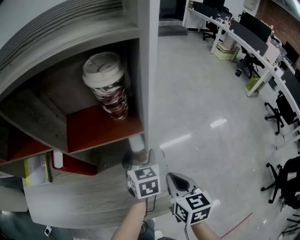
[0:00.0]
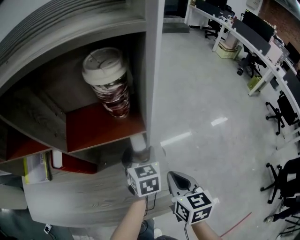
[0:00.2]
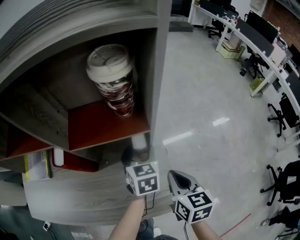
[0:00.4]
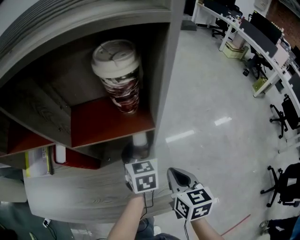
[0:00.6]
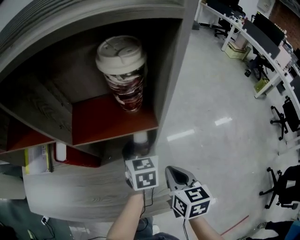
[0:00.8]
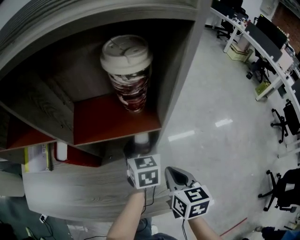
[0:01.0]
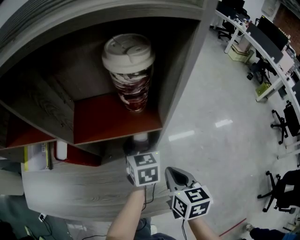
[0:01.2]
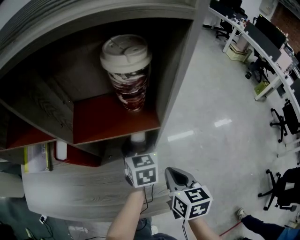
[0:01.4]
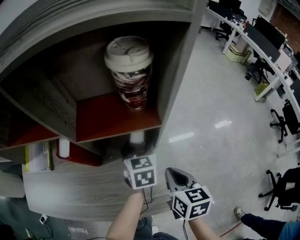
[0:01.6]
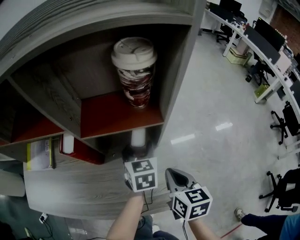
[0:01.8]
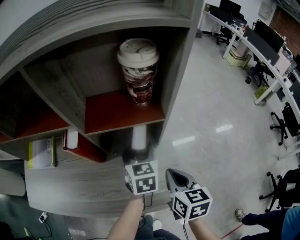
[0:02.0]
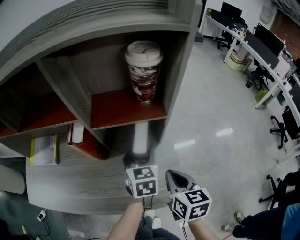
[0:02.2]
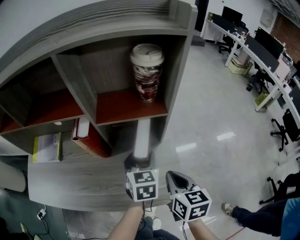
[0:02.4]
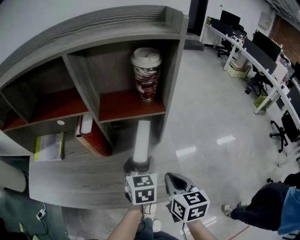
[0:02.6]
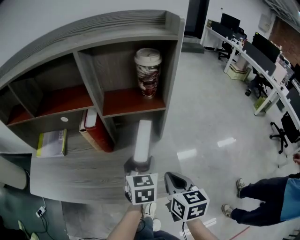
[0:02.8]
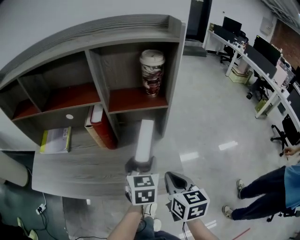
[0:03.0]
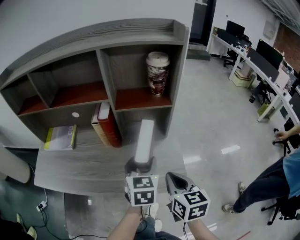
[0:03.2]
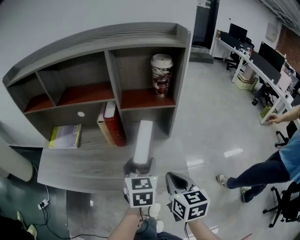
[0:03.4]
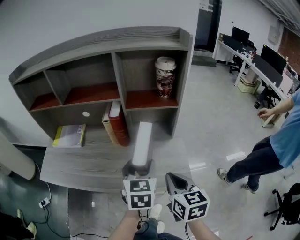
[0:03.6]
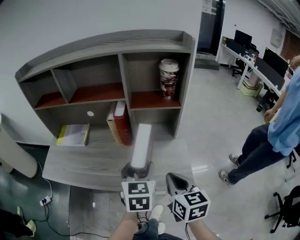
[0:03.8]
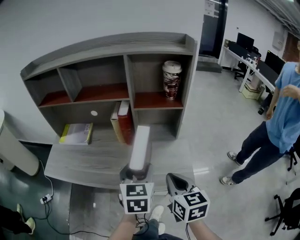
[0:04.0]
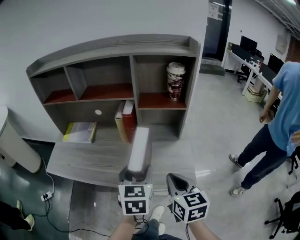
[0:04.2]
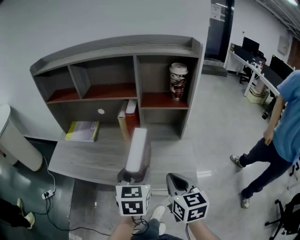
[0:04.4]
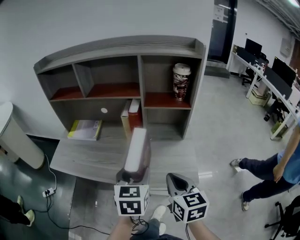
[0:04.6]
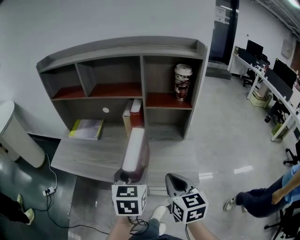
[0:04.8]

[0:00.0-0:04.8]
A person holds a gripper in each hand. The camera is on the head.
0:00.0 to 0:01.6: The left gripper shifts by about 5 cm.
0:01.6 to 0:03.2: The right gripper shifts approximately 15 cm backward, to the left and upward. Meanwhile the left gripper moves backward and upward, about 20 cm.
0:03.2 to 0:04.8: The right gripper is displaced to the left and backward by some 10 cm, while the left gripper moves to the left, backward and upward, some 15 cm.

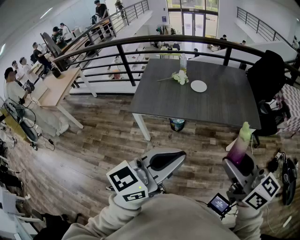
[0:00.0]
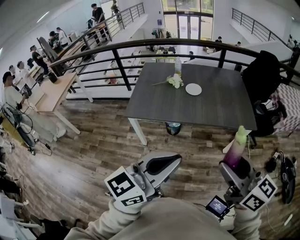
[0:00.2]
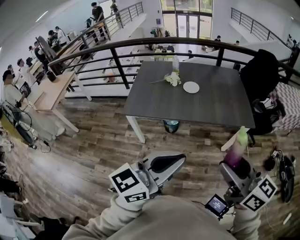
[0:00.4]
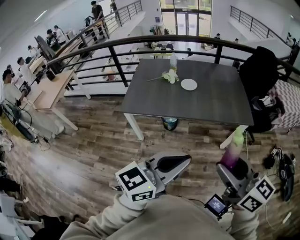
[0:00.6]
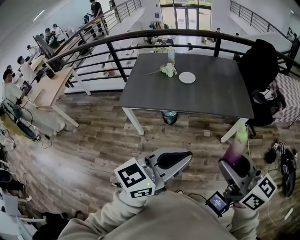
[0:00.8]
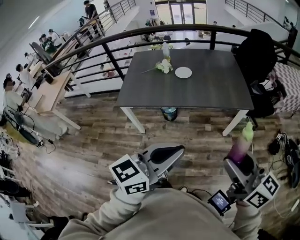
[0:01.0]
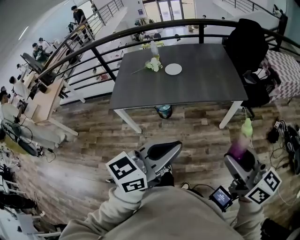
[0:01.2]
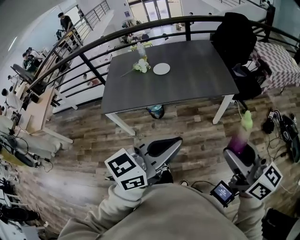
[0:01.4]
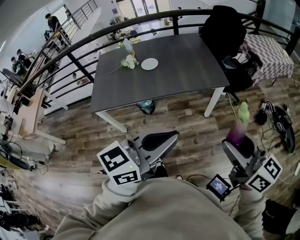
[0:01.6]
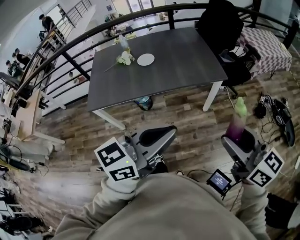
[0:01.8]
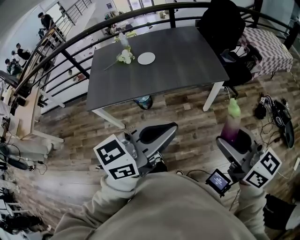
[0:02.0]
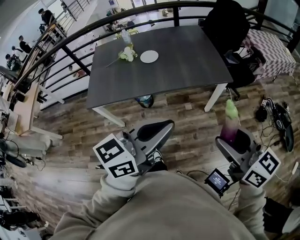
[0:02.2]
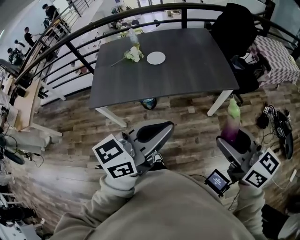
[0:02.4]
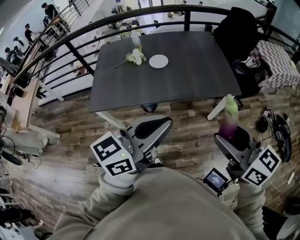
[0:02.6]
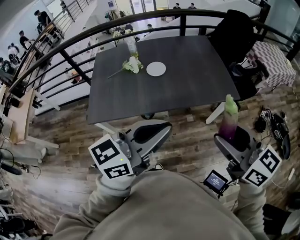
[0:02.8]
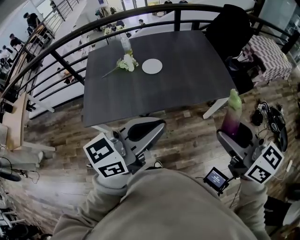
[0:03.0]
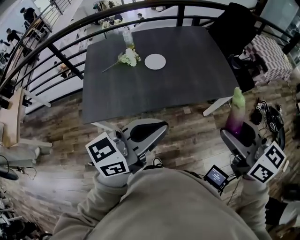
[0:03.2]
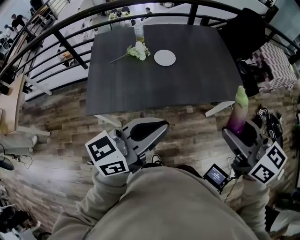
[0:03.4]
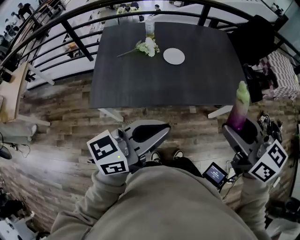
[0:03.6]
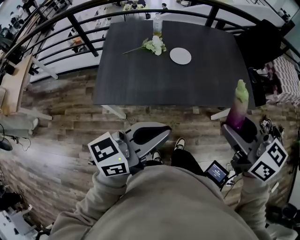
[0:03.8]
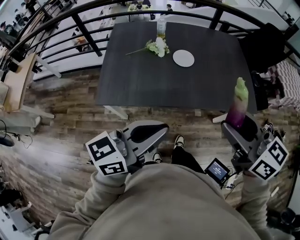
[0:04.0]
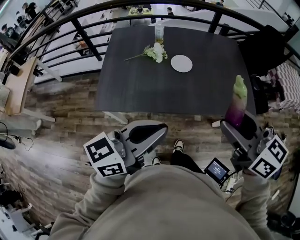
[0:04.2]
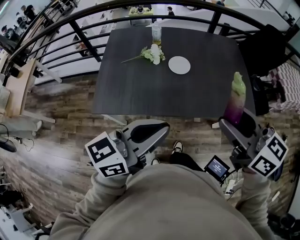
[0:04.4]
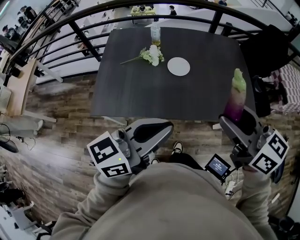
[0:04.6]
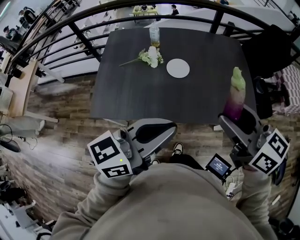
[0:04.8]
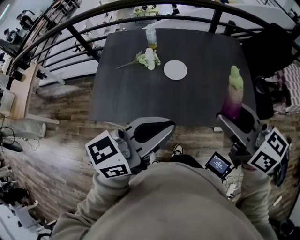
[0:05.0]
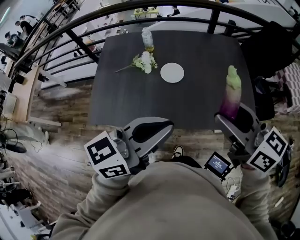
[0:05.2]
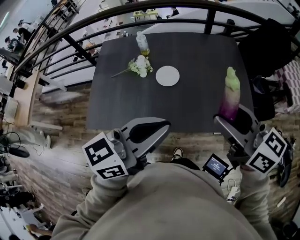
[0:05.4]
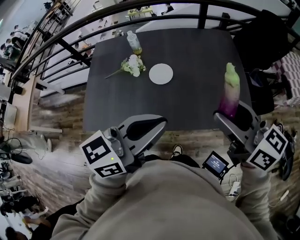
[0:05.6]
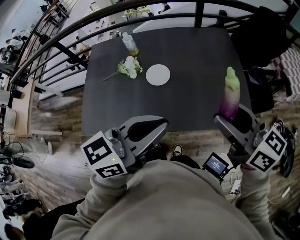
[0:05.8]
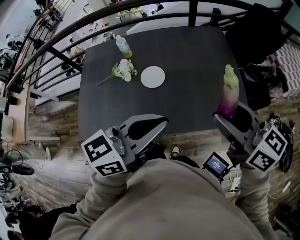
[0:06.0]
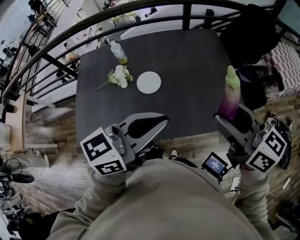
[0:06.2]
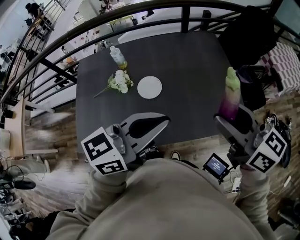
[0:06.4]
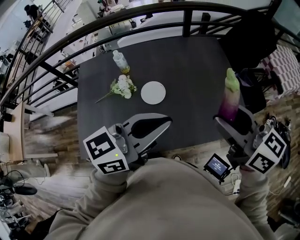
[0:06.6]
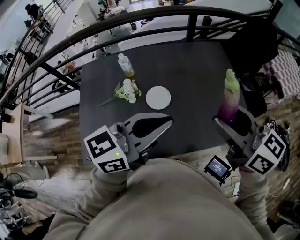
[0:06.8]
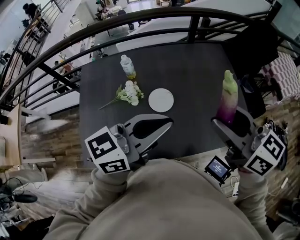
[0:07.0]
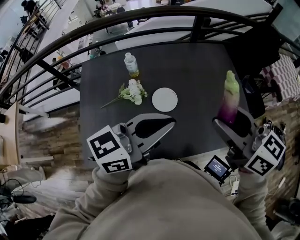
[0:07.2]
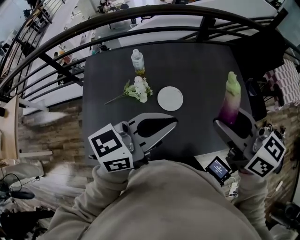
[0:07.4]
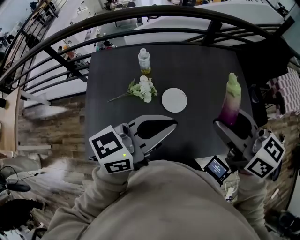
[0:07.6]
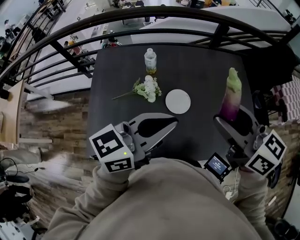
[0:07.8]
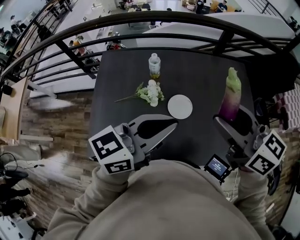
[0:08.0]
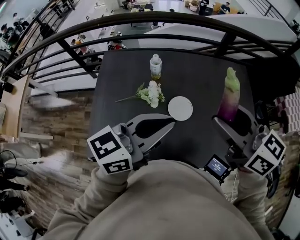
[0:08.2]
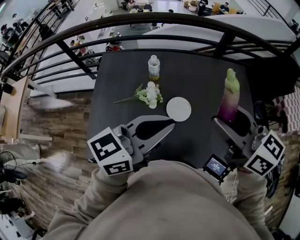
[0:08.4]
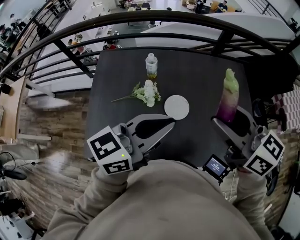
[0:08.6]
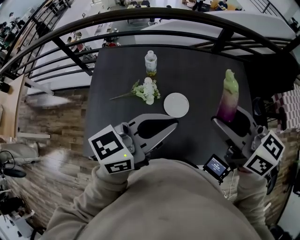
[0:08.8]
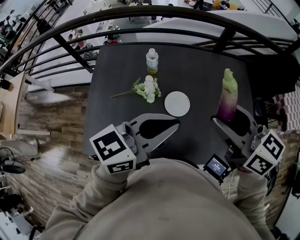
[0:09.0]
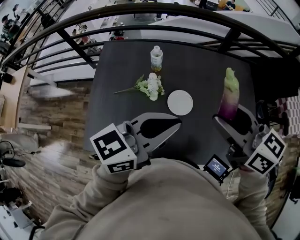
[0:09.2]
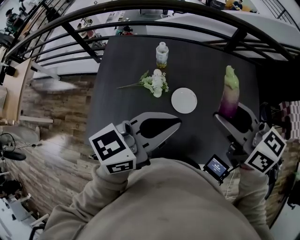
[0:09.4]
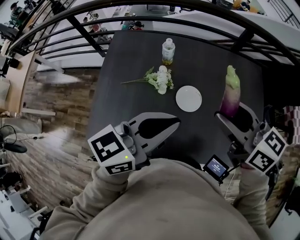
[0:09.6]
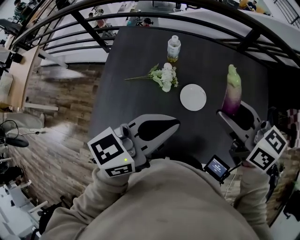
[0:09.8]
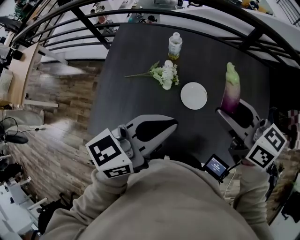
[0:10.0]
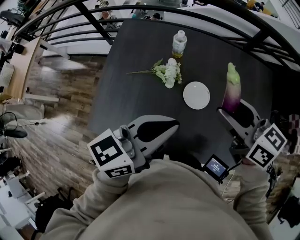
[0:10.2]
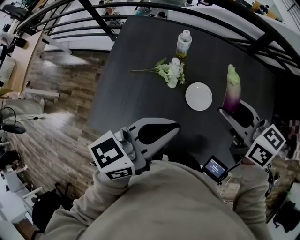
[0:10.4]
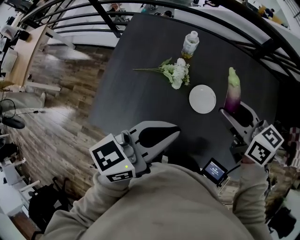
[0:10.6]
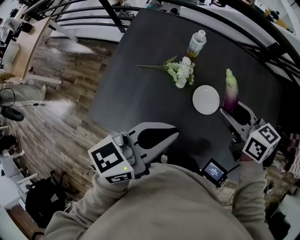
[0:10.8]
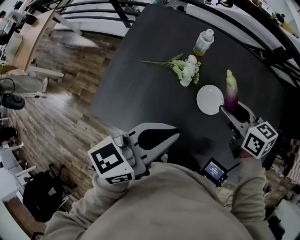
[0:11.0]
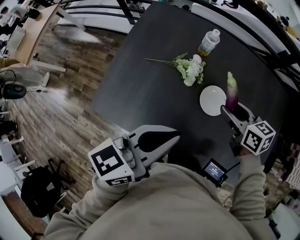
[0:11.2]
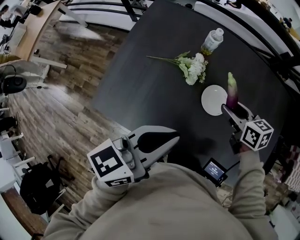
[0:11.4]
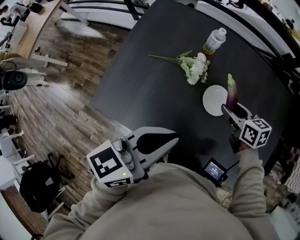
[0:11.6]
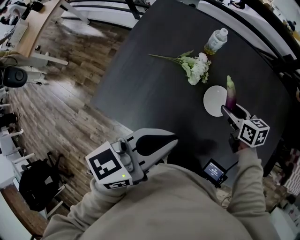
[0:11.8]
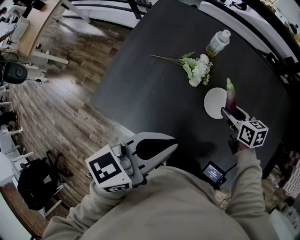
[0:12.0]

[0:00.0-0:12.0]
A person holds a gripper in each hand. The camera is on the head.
0:00.0 to 0:01.6: Both grippers travel together to the right, some 15 cm.
0:01.6 to 0:03.0: The left gripper is displaced to the left and forward by approximately 25 cm, while the right gripper heads forward and to the left, covering approximately 25 cm.
0:03.0 to 0:04.4: The right gripper is displaced forward and to the left by approximately 15 cm. The left gripper moves to the left and forward, approximately 10 cm.
0:04.4 to 0:06.0: The left gripper is displaced forward and to the right by approximately 20 cm; the right gripper goes roughly 20 cm to the right and forward.
0:06.0 to 0:07.6: The grippers both shift to the left and forward by about 20 cm.
0:07.6 to 0:09.0: The grippers move only a little.
0:09.0 to 0:10.4: The right gripper shifts roughly 10 cm downward and forward; the left gripper heads downward, covering approximately 5 cm.
0:10.4 to 0:12.0: The left gripper changes place by some 5 cm, while the right gripper shifts approximately 25 cm downward, and swivels roughly 20 degrees.

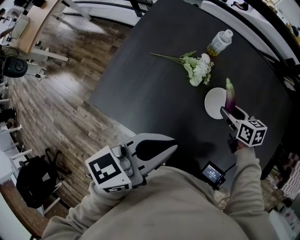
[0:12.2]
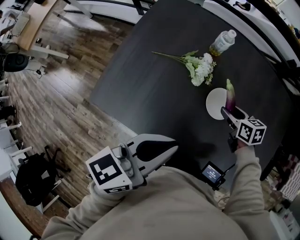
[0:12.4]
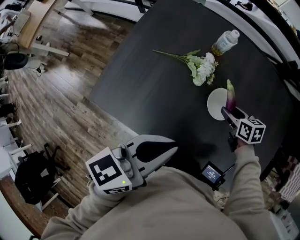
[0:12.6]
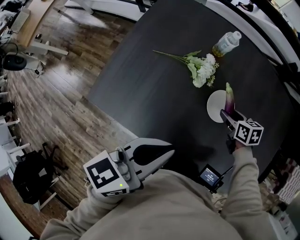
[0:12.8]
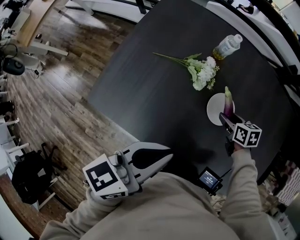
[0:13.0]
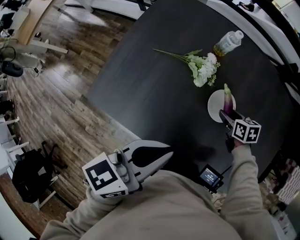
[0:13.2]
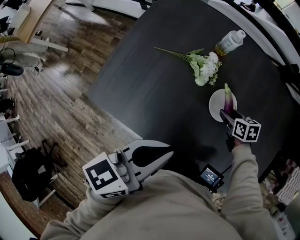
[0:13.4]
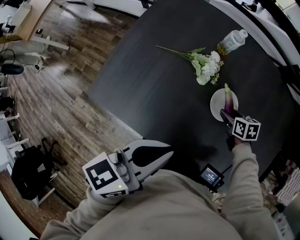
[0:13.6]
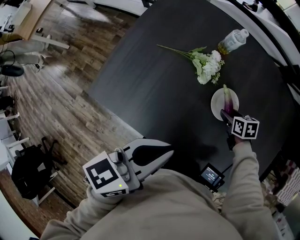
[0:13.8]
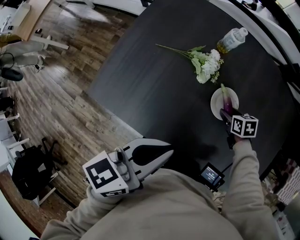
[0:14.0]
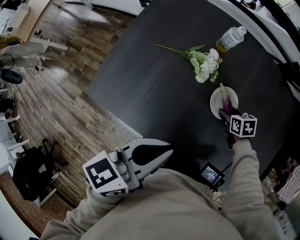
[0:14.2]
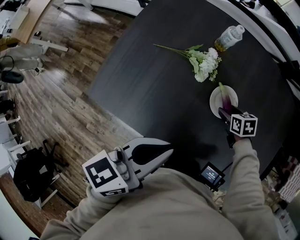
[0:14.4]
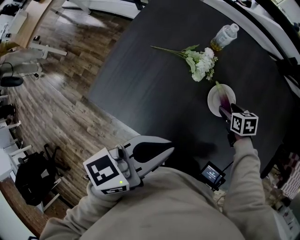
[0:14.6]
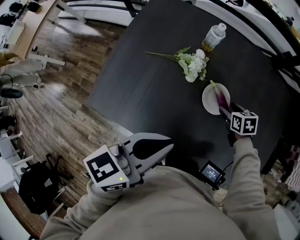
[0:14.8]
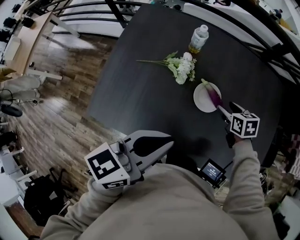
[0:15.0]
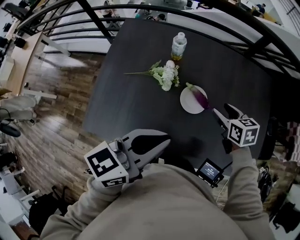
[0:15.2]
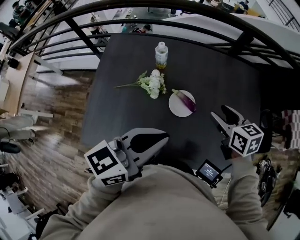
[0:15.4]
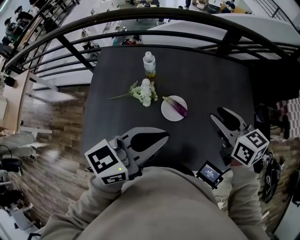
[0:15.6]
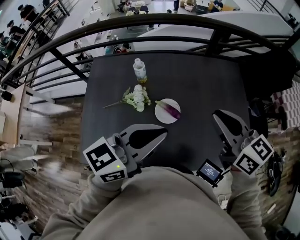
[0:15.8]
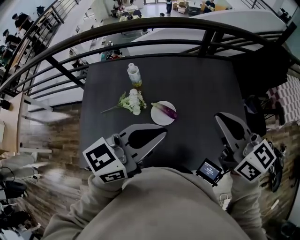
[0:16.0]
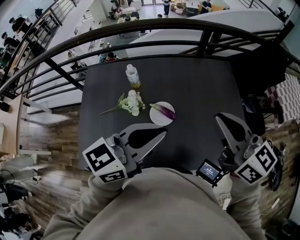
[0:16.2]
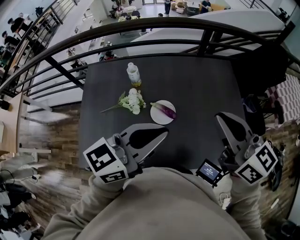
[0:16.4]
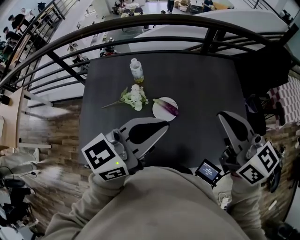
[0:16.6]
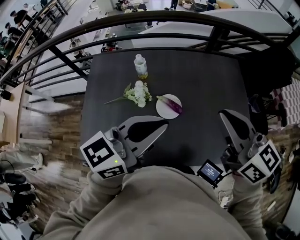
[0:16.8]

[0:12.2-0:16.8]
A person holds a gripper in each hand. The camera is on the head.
0:12.2 to 0:13.8: The right gripper shifts approximately 10 cm downward.
0:13.8 to 0:15.2: The left gripper is displaced upward and to the right by approximately 10 cm, and changes its angle by approximately 20 degrees. The right gripper goes roughly 20 cm upward, and rotates roughly 20 degrees.
0:15.2 to 0:16.8: The left gripper moves upward and to the right, about 10 cm, while the right gripper moves upward, some 30 cm, tips its fingers upward by about 40 degrees, and closes.

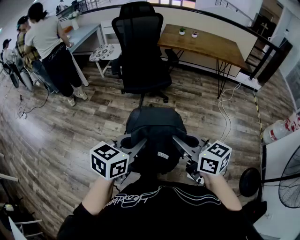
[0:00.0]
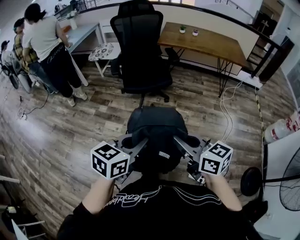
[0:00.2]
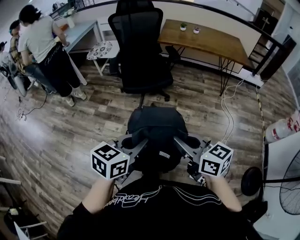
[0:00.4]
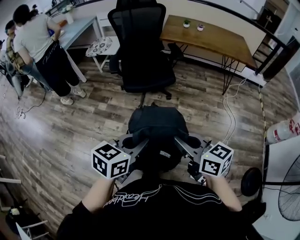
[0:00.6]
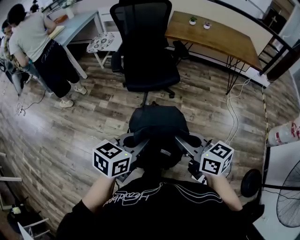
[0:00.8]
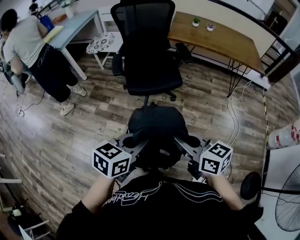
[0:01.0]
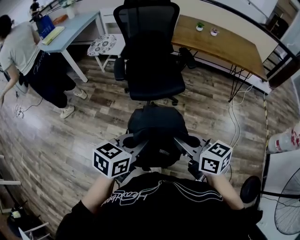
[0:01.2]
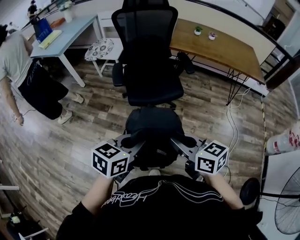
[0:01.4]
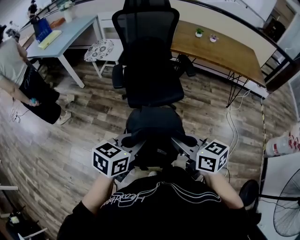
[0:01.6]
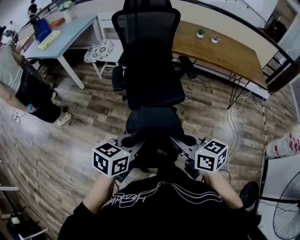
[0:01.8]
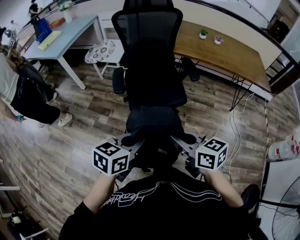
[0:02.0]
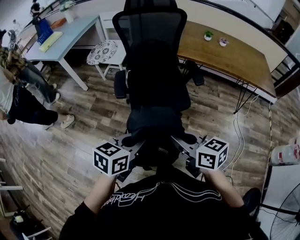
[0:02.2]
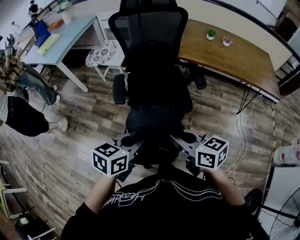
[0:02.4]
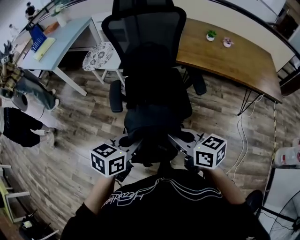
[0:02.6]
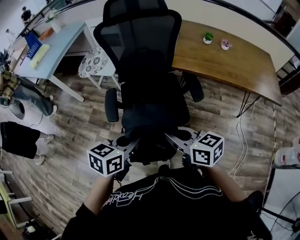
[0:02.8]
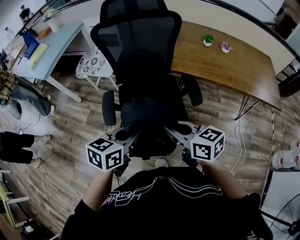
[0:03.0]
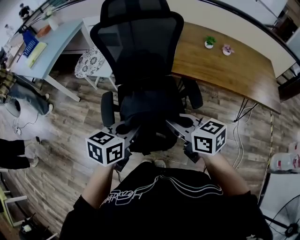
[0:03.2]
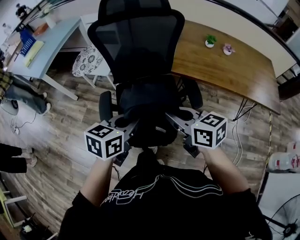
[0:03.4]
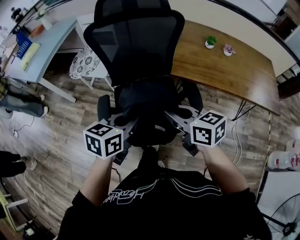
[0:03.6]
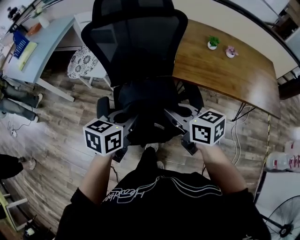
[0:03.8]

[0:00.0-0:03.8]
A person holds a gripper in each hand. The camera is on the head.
0:00.0 to 0:01.2: Both grippers travel together forward, some 25 cm.
0:01.2 to 0:02.6: Both grippers travel together forward, some 30 cm.
0:02.6 to 0:03.8: The grippers both shift forward by approximately 25 cm.
